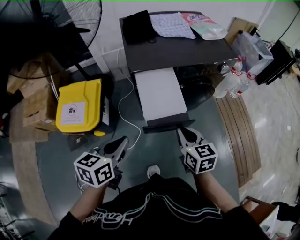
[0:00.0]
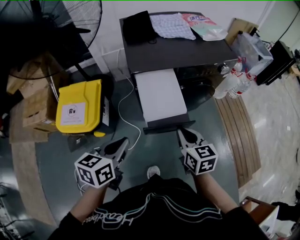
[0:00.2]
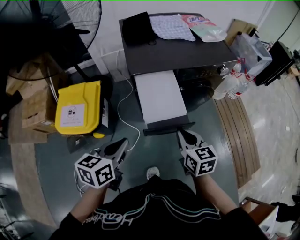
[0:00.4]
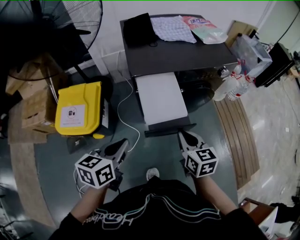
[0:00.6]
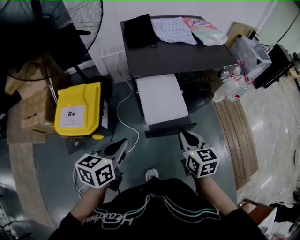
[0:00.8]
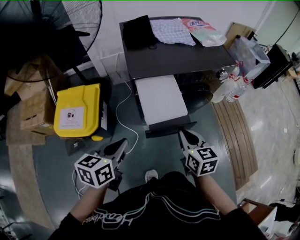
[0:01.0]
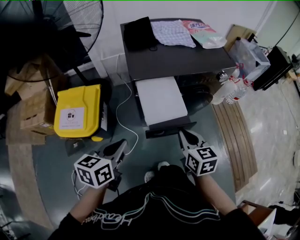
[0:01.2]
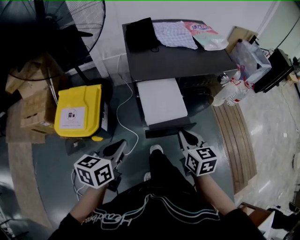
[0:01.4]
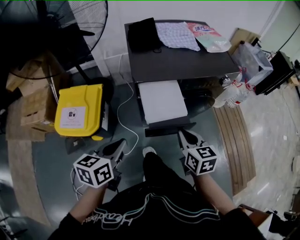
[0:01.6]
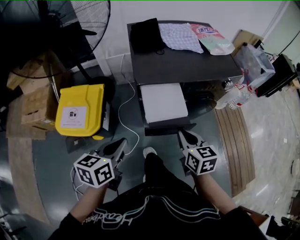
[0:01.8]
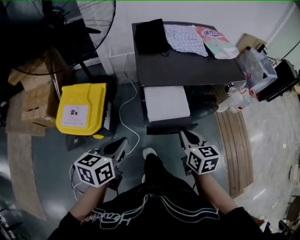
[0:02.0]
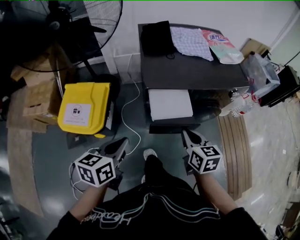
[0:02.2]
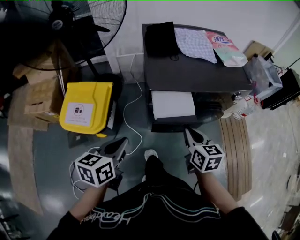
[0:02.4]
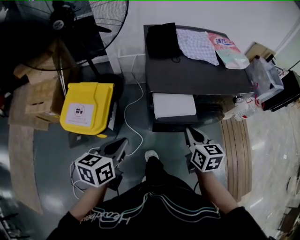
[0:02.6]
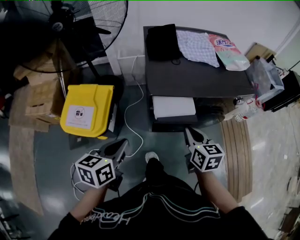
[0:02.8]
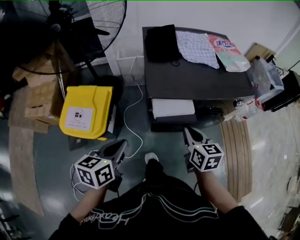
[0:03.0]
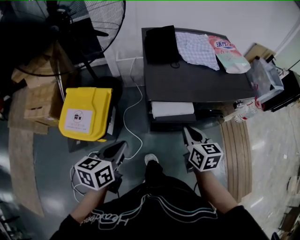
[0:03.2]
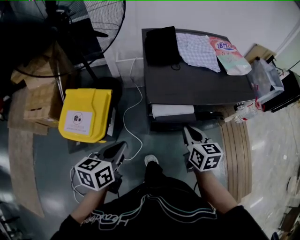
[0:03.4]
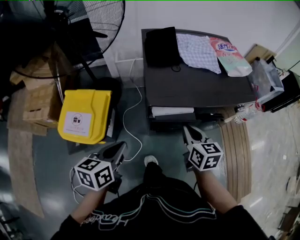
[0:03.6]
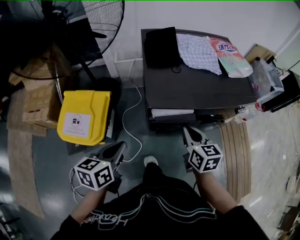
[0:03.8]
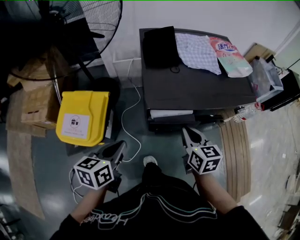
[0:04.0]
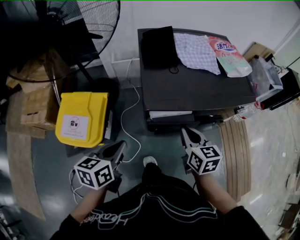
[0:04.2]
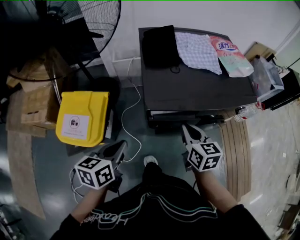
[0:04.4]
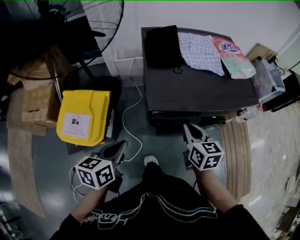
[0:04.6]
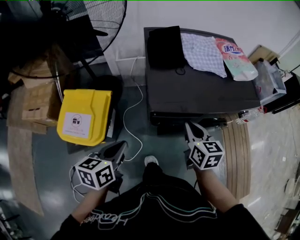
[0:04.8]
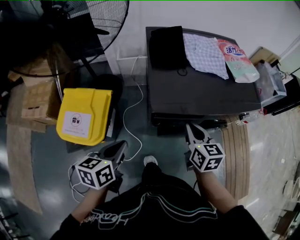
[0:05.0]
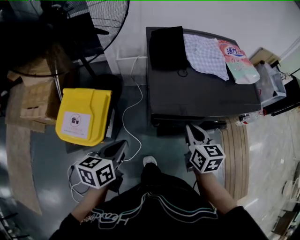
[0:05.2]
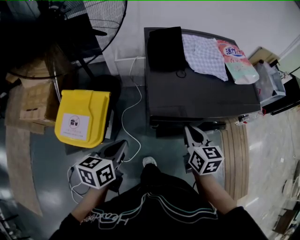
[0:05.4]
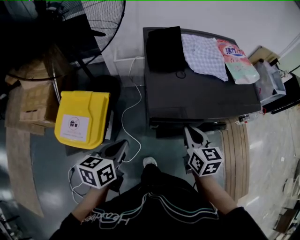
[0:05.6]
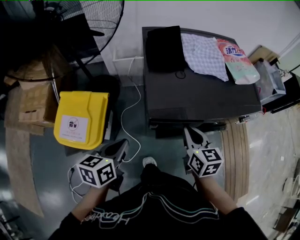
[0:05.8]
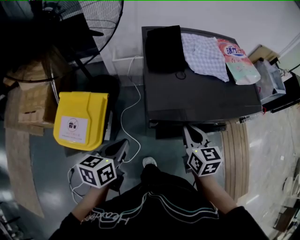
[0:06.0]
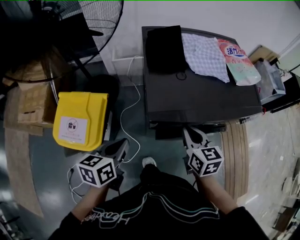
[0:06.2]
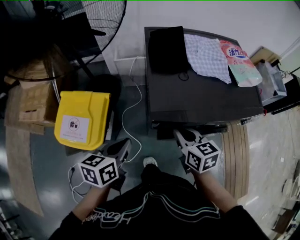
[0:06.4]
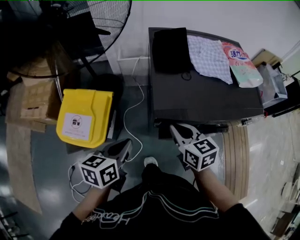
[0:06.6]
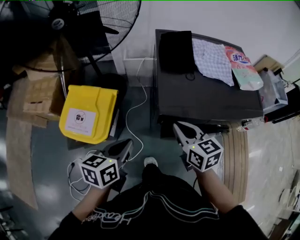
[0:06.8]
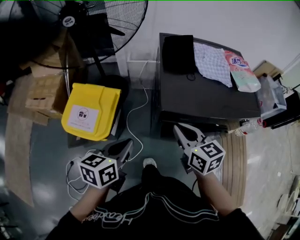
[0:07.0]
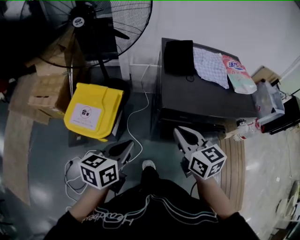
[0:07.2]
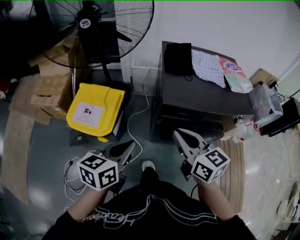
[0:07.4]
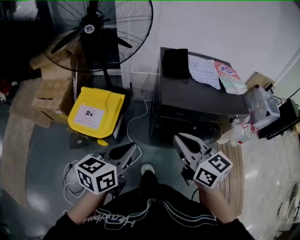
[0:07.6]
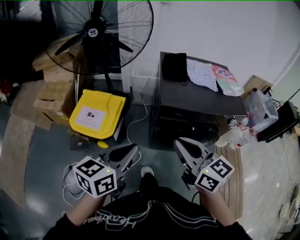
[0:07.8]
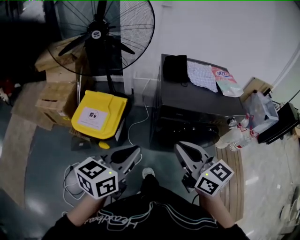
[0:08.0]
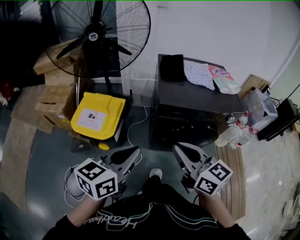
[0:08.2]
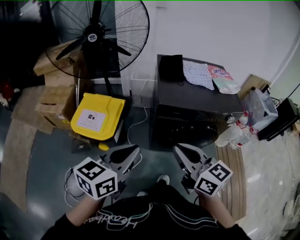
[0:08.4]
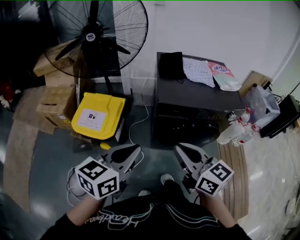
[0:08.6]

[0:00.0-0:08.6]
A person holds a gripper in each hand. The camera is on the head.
0:00.0 to 0:01.4: The grippers make only small movements.
0:01.4 to 0:02.8: The left gripper is displaced forward by some 5 cm. Meanwhile the right gripper is displaced forward by about 10 cm.
0:02.8 to 0:04.4: The two grippers go roughly 10 cm forward.
0:04.4 to 0:05.8: The grippers make only small movements.
0:05.8 to 0:07.2: The left gripper moves backward and upward, about 10 cm; the right gripper is displaced upward, to the left and backward by some 15 cm, and changes its angle by roughly 20 degrees.
0:07.2 to 0:08.6: Both grippers travel together backward and upward, roughly 20 cm.

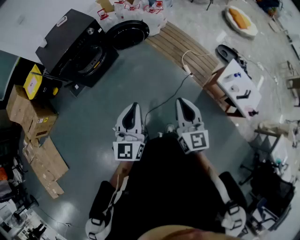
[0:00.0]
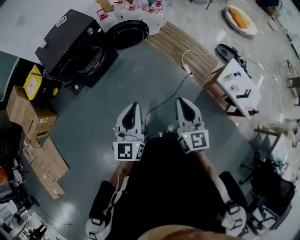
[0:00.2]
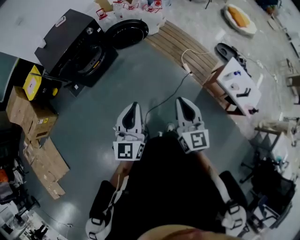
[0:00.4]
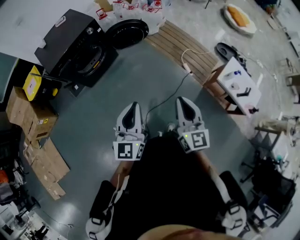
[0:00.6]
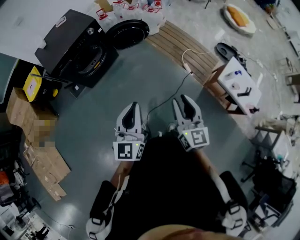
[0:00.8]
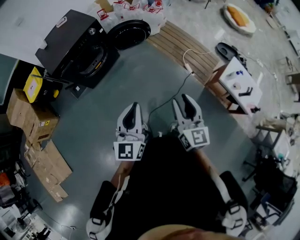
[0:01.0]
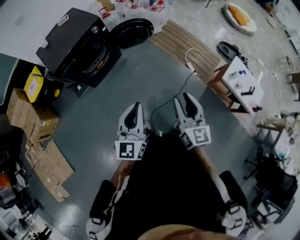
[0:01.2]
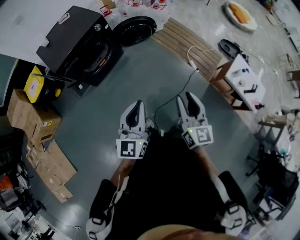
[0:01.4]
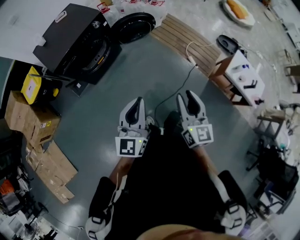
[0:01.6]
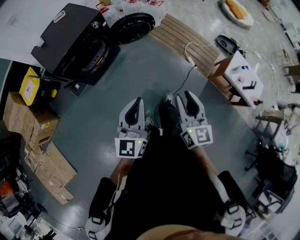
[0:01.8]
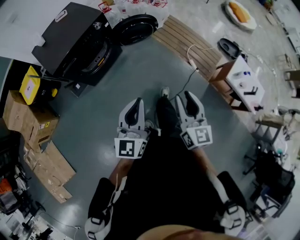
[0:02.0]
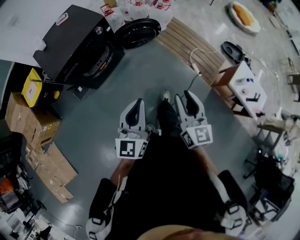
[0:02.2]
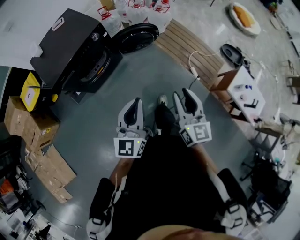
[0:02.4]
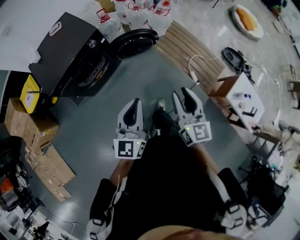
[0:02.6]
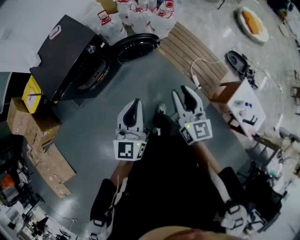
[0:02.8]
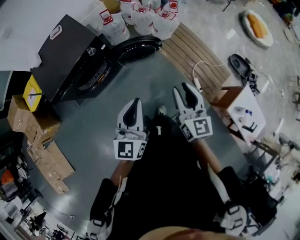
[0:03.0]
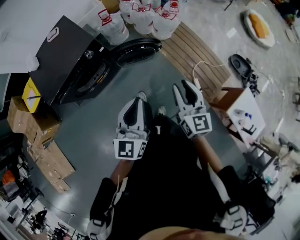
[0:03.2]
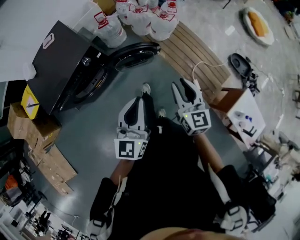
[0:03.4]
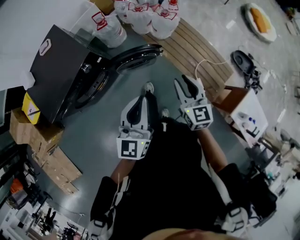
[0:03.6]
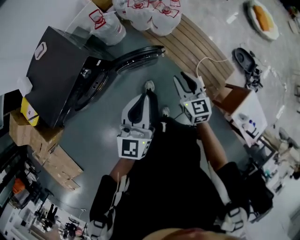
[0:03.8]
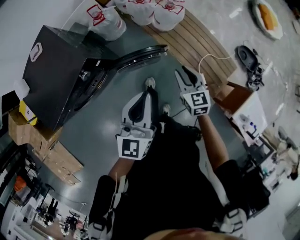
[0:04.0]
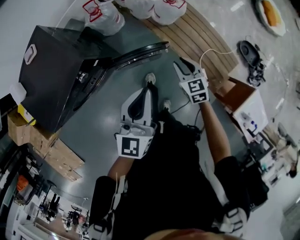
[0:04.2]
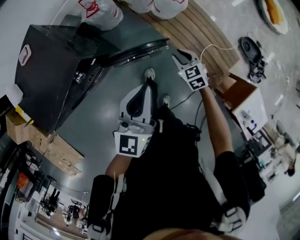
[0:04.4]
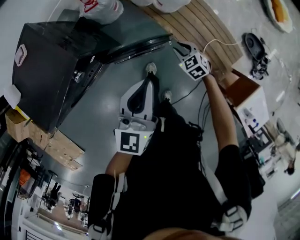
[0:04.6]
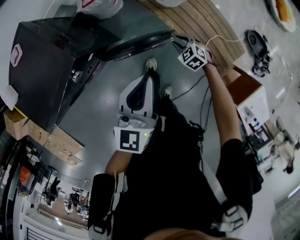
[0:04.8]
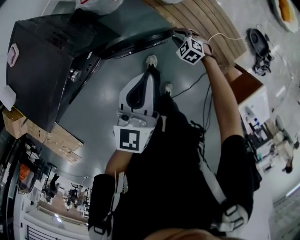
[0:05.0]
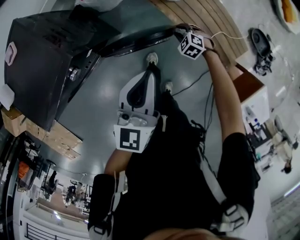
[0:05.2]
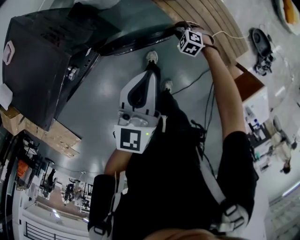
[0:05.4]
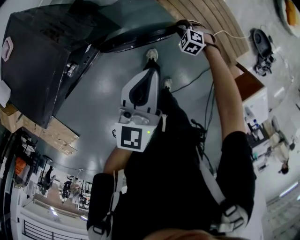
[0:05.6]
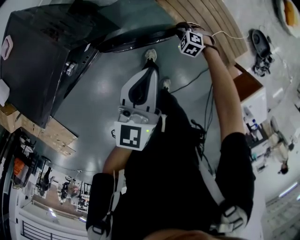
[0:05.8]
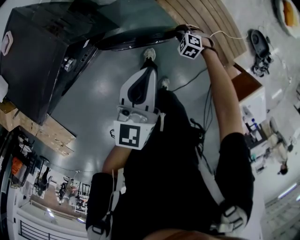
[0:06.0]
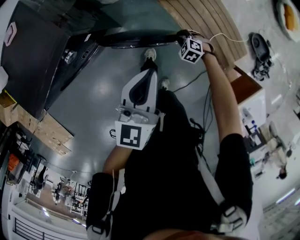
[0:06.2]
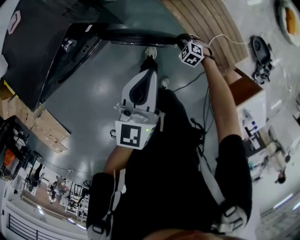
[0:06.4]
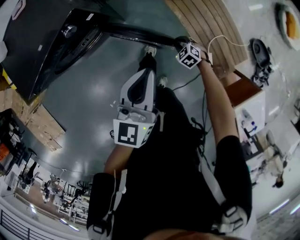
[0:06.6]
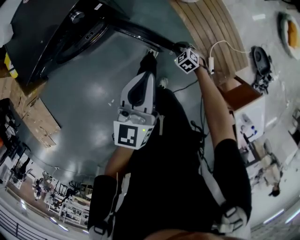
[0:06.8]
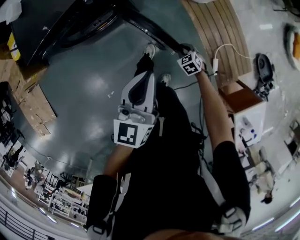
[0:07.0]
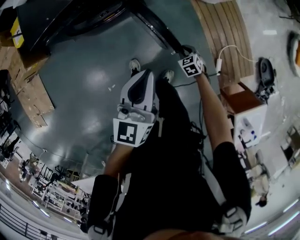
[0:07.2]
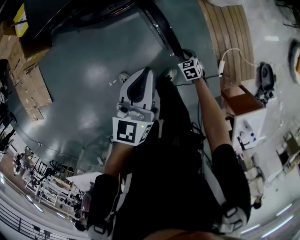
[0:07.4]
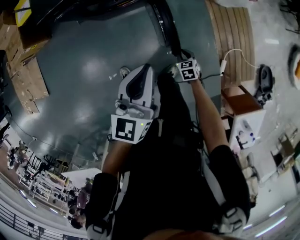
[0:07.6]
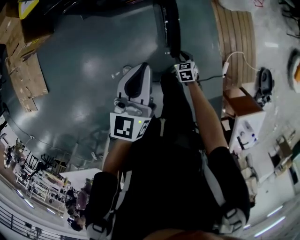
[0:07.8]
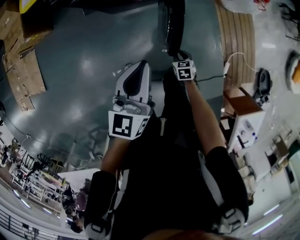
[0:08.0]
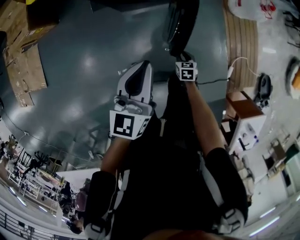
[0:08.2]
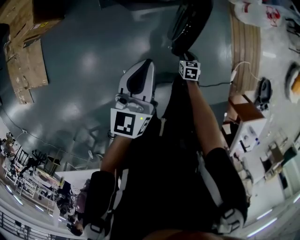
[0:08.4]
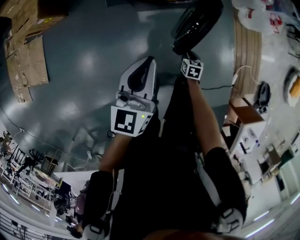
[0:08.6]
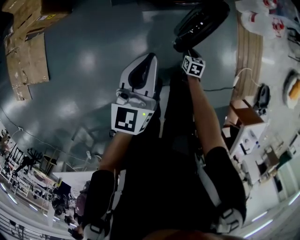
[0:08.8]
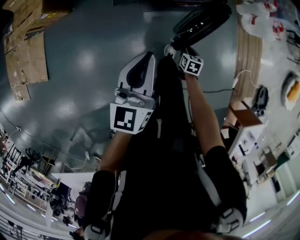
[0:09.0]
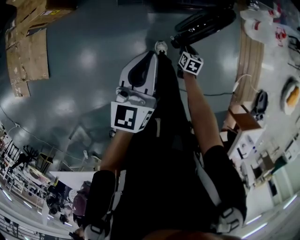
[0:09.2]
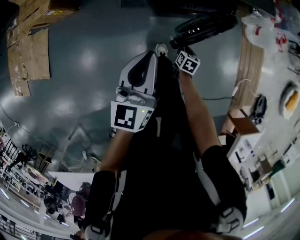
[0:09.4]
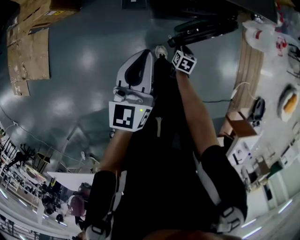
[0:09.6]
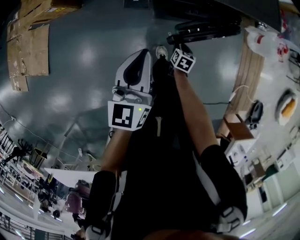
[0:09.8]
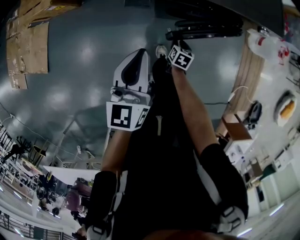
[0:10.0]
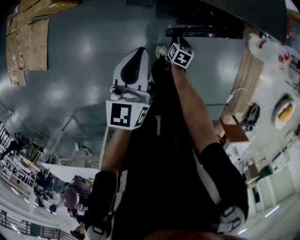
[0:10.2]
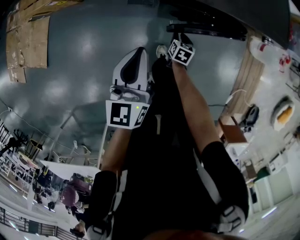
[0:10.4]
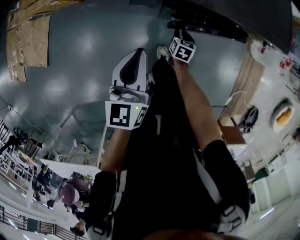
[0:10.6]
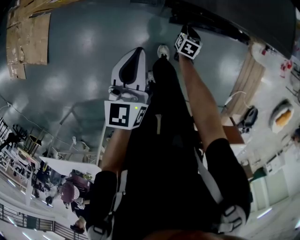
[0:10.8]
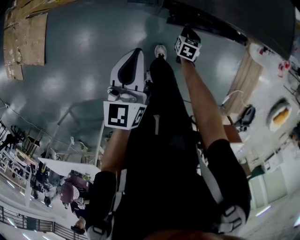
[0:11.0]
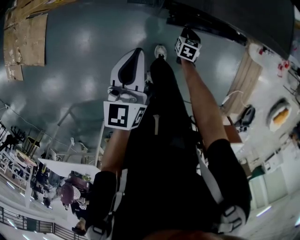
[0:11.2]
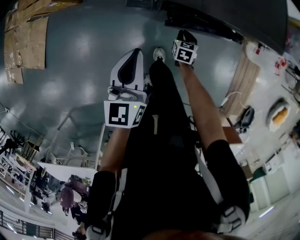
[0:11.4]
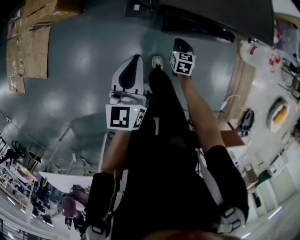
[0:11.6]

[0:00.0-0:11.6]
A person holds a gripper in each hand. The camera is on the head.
0:00.0 to 0:01.4: Both grippers move to the left, roughly 10 cm. The right gripper opens its fingers.
0:01.4 to 0:02.8: The grippers both shift forward by roughly 30 cm.
0:02.8 to 0:04.4: The right gripper heads forward and downward, covering some 50 cm, and tips its fingers downward by roughly 40 degrees. The left gripper moves forward, some 40 cm.
0:04.4 to 0:05.8: The left gripper travels downward by roughly 10 cm. The right gripper moves downward, some 20 cm, and turns by roughly 40 degrees.
0:05.8 to 0:07.2: The grippers both shift backward and to the left by roughly 30 cm. The left gripper rotates approximately 20 degrees, while the right gripper changes its angle by roughly 20 degrees.
0:07.2 to 0:08.8: Both grippers travel together to the left, approximately 40 cm. The right gripper swivels about 30 degrees.
0:08.8 to 0:10.2: The left gripper travels to the left and forward by roughly 15 cm; the right gripper goes about 25 cm to the left and forward.
0:10.2 to 0:11.6: The right gripper goes about 10 cm upward and forward, swivels roughly 20 degrees, and closes its fingers.

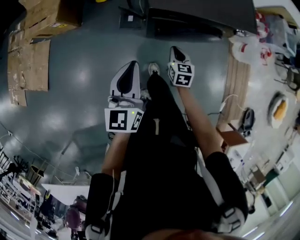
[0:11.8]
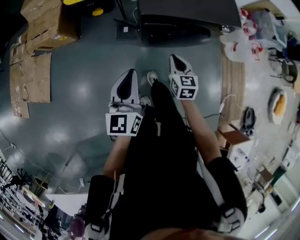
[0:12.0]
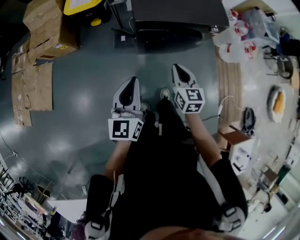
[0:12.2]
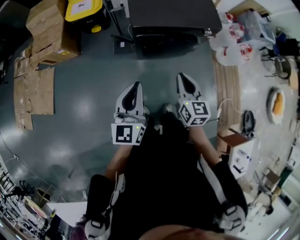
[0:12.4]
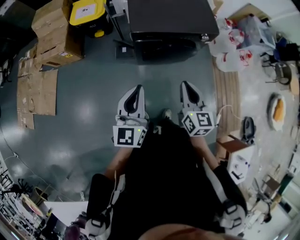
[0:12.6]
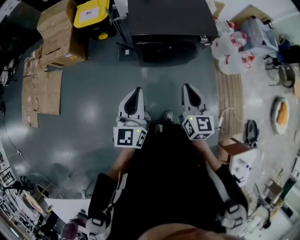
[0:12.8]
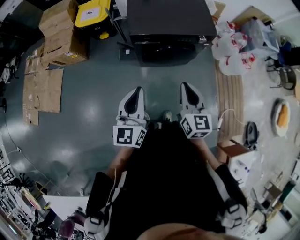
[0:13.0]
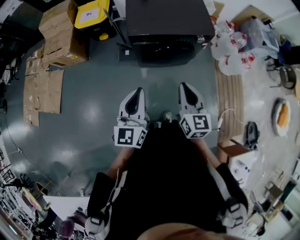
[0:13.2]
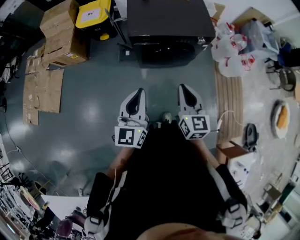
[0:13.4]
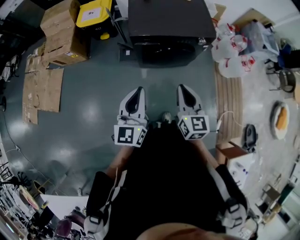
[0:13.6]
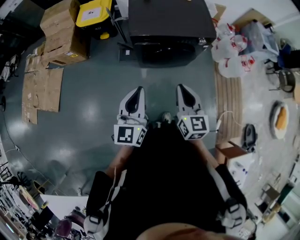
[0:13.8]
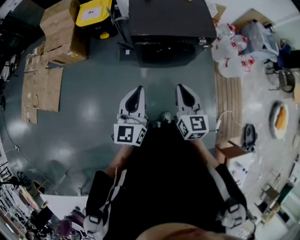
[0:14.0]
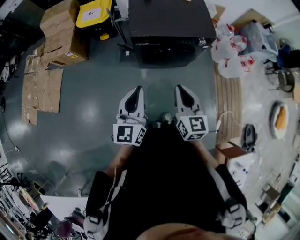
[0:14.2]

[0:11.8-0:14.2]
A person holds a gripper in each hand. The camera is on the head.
0:11.8 to 0:13.0: The left gripper is displaced upward, to the right and backward by approximately 25 cm. The right gripper moves upward and backward, roughly 40 cm, and rotates some 30 degrees.
0:13.0 to 0:14.2: The grippers move only a little.

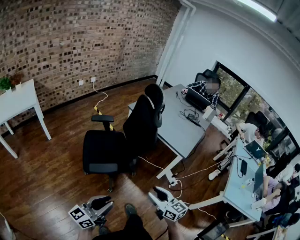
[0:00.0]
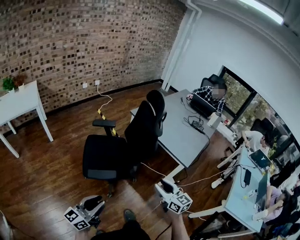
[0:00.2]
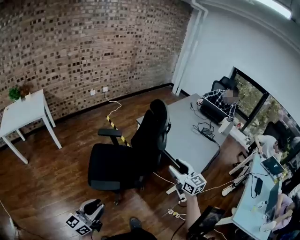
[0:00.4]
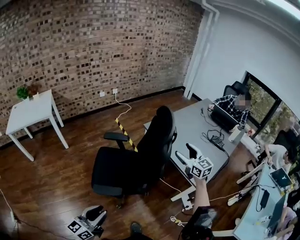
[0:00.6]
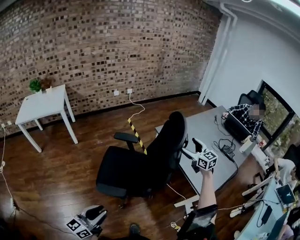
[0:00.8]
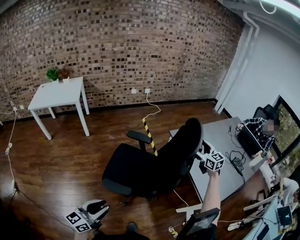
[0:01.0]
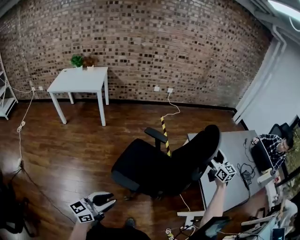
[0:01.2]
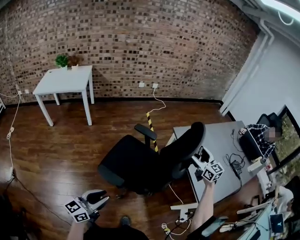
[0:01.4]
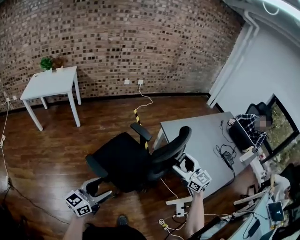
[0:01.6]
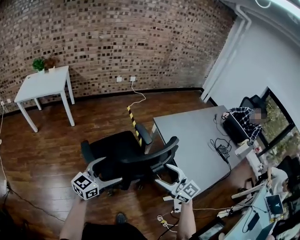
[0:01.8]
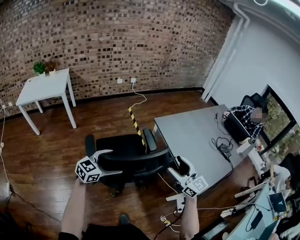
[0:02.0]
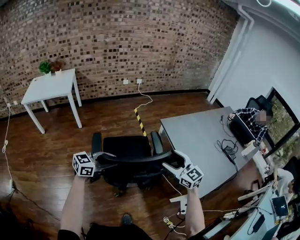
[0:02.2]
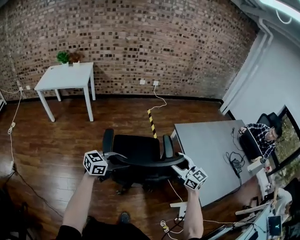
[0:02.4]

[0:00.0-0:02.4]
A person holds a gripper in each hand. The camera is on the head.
0:00.0 to 0:01.2: The left gripper heads to the left, covering roughly 20 cm, and turns by approximately 20 degrees, while the right gripper travels forward and upward by some 40 cm, and opens.
0:01.2 to 0:02.4: The left gripper shifts some 20 cm forward and to the right, changes its angle by some 20 degrees, and opens up; the right gripper heads to the left and backward, covering some 20 cm, and changes its angle by some 20 degrees.
